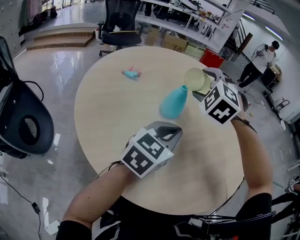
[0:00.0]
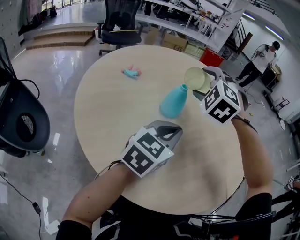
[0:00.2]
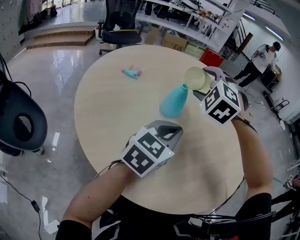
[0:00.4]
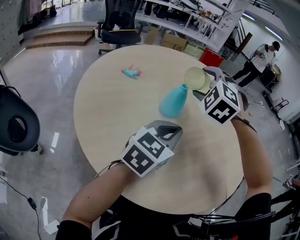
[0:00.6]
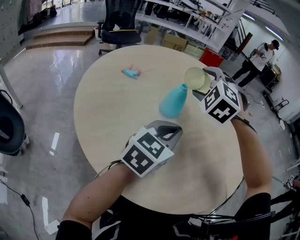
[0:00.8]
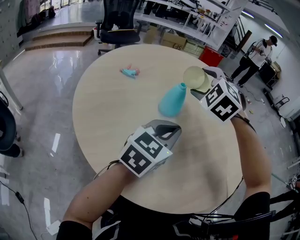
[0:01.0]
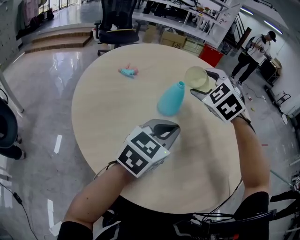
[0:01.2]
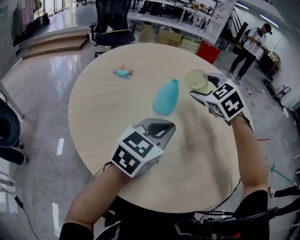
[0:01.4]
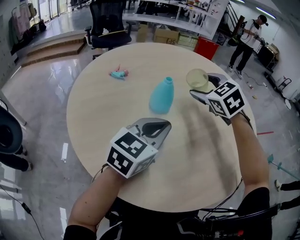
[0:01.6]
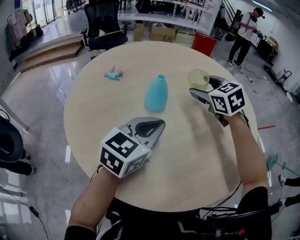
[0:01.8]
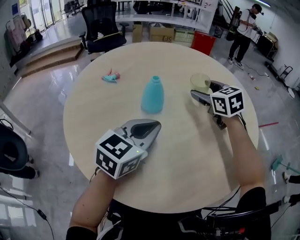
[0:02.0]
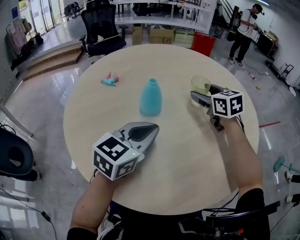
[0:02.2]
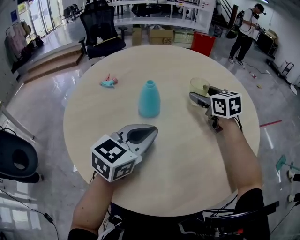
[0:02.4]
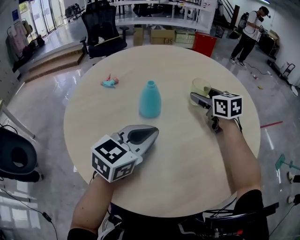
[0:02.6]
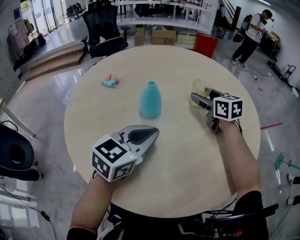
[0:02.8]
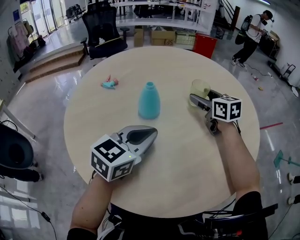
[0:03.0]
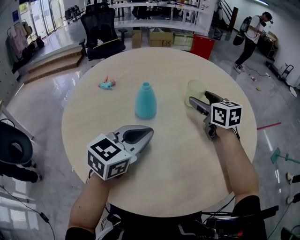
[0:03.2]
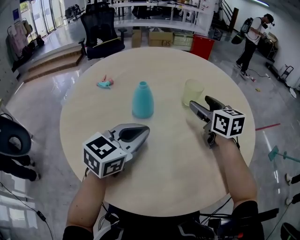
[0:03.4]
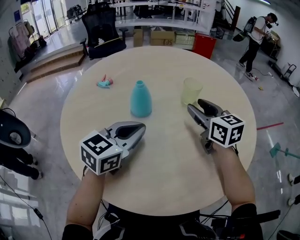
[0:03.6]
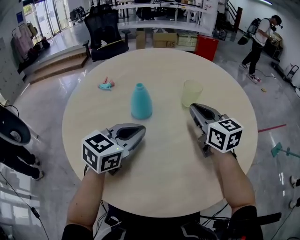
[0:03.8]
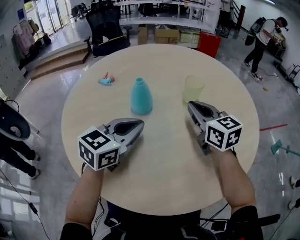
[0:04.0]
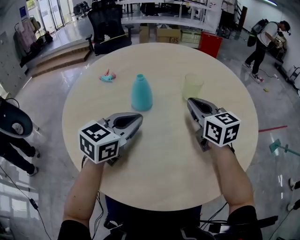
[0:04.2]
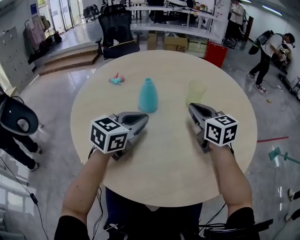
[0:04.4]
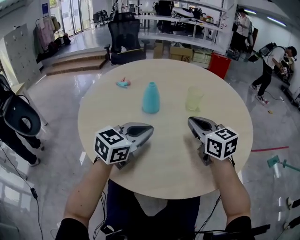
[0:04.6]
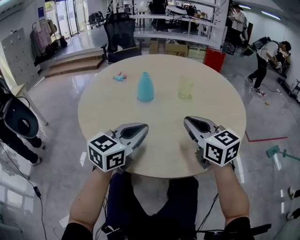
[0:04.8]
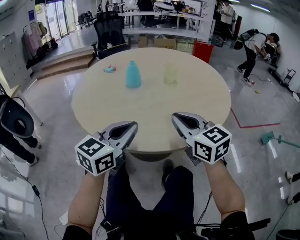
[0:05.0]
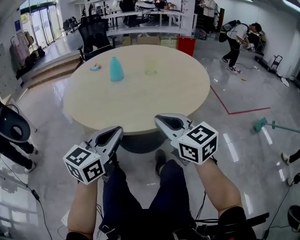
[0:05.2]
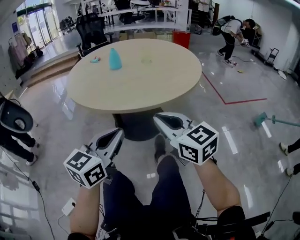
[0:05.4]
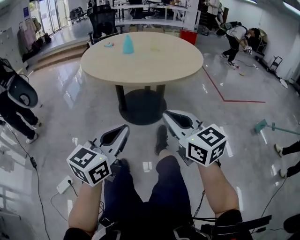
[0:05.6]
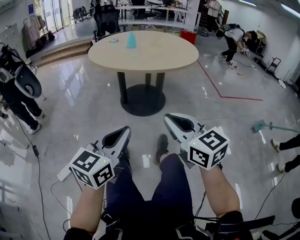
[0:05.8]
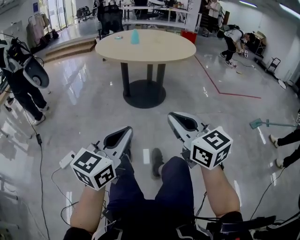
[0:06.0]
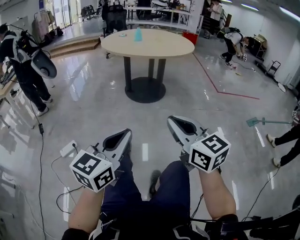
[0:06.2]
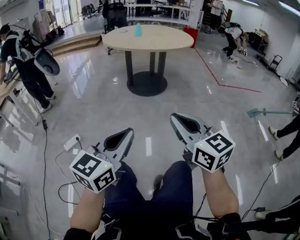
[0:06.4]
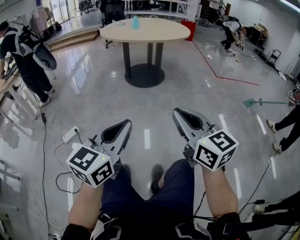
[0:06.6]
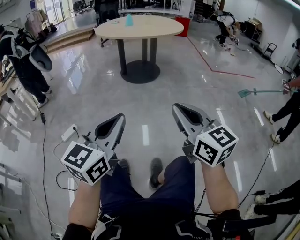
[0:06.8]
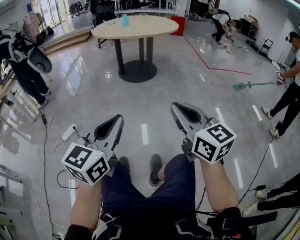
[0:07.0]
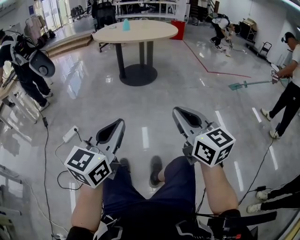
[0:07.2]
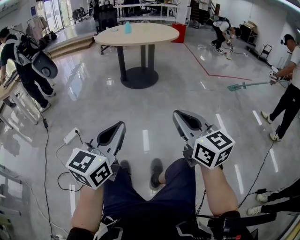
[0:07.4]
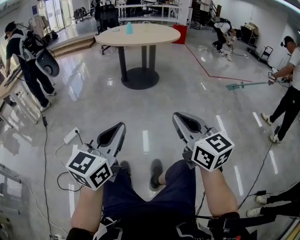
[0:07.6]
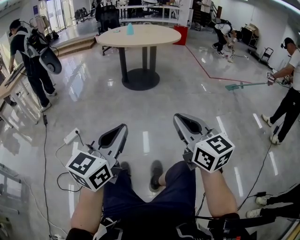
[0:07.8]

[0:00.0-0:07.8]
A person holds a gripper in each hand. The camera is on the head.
0:00.0 to 0:01.6: The right gripper goes some 5 cm to the right, and turns by some 40 degrees.
0:01.6 to 0:03.2: The right gripper heads to the right, covering approximately 10 cm, and rotates around the line of its fingers by roughly 40 degrees, clockwise from behind.
0:03.2 to 0:04.6: The right gripper shifts about 15 cm backward, and closes up.
0:04.6 to 0:06.2: The pair of grippers is taken backward, about 80 cm.
0:06.2 to 0:07.8: Both grippers travel together backward, some 20 cm.

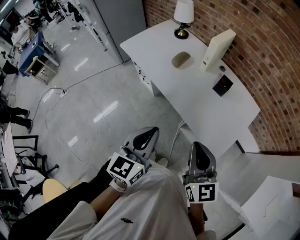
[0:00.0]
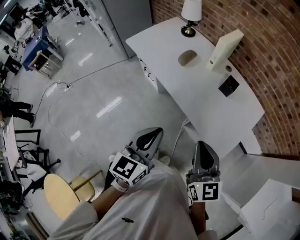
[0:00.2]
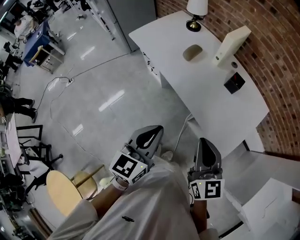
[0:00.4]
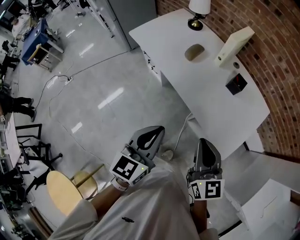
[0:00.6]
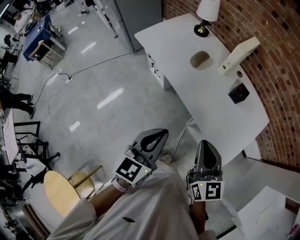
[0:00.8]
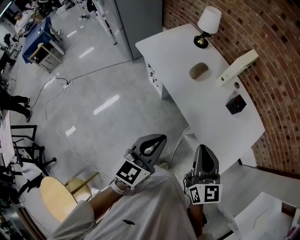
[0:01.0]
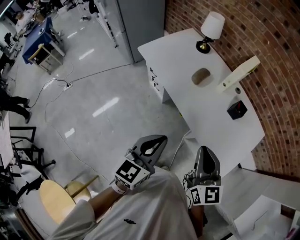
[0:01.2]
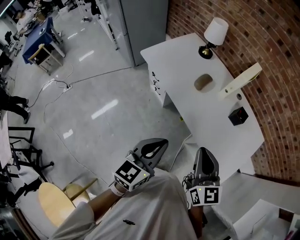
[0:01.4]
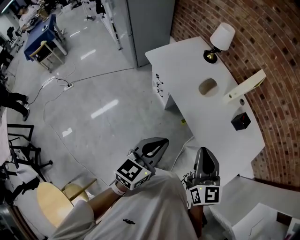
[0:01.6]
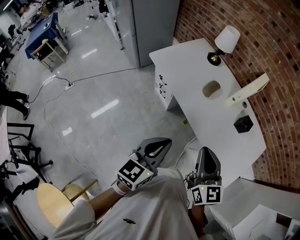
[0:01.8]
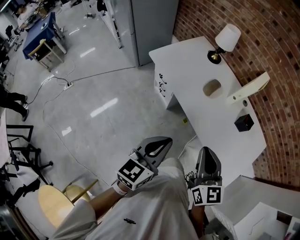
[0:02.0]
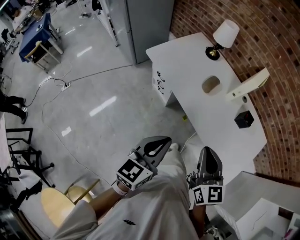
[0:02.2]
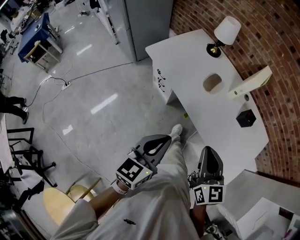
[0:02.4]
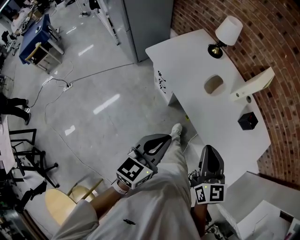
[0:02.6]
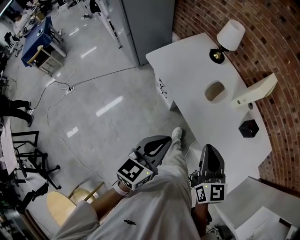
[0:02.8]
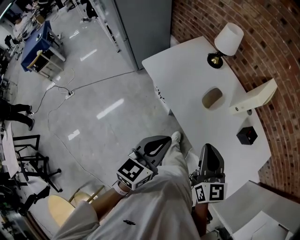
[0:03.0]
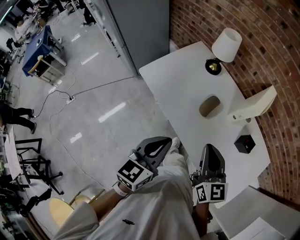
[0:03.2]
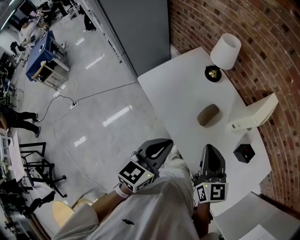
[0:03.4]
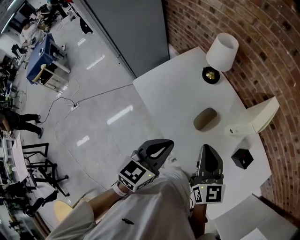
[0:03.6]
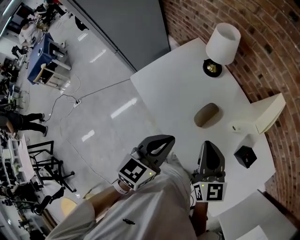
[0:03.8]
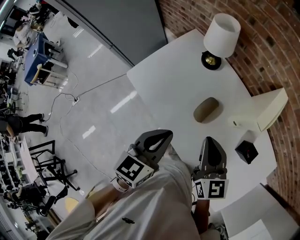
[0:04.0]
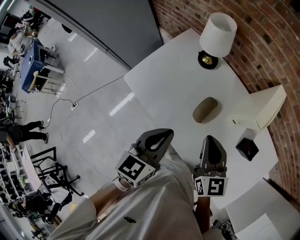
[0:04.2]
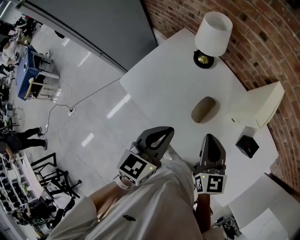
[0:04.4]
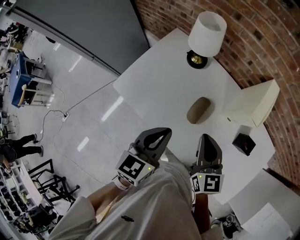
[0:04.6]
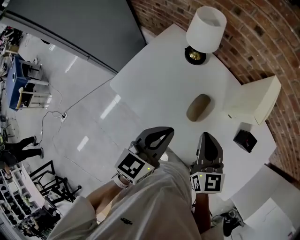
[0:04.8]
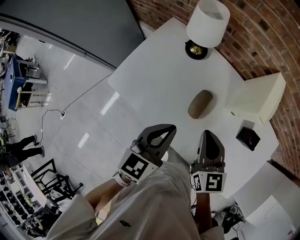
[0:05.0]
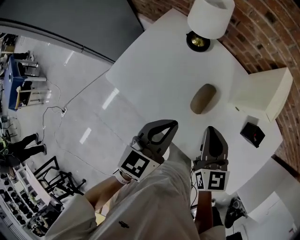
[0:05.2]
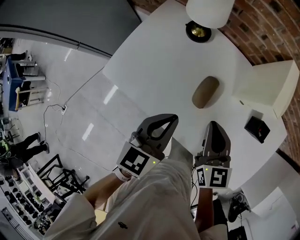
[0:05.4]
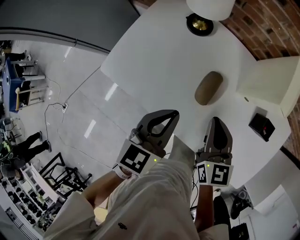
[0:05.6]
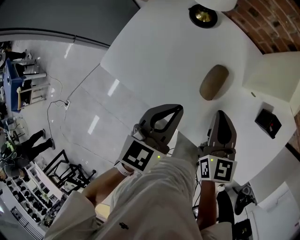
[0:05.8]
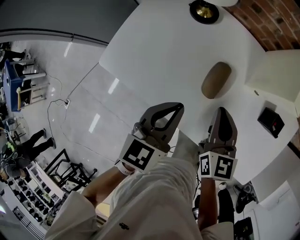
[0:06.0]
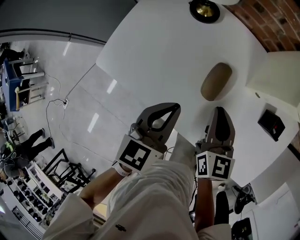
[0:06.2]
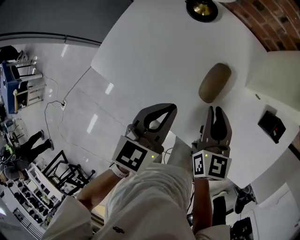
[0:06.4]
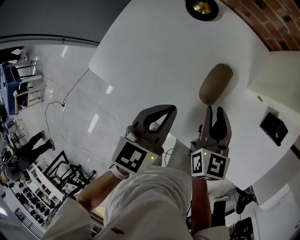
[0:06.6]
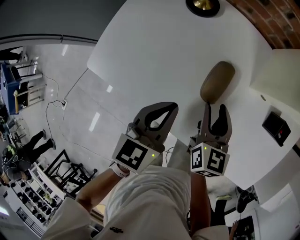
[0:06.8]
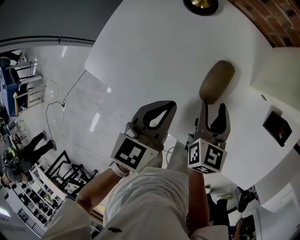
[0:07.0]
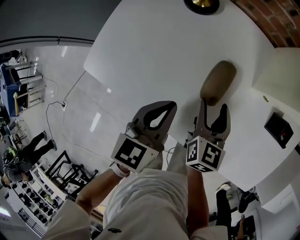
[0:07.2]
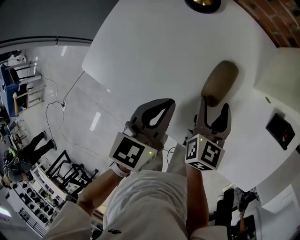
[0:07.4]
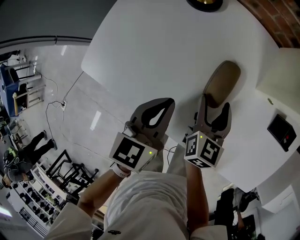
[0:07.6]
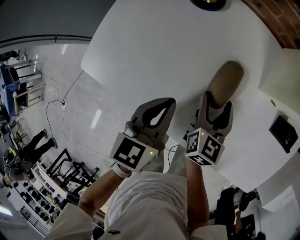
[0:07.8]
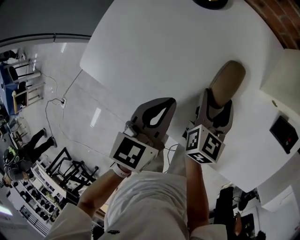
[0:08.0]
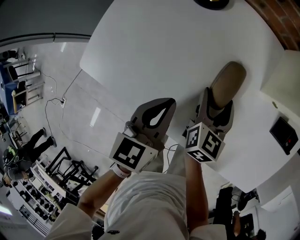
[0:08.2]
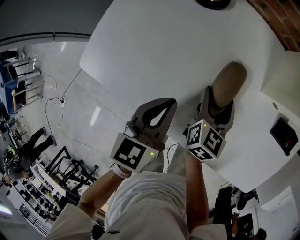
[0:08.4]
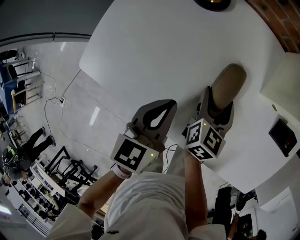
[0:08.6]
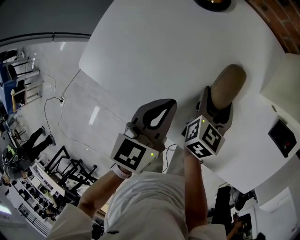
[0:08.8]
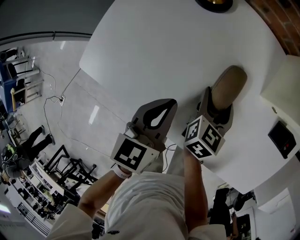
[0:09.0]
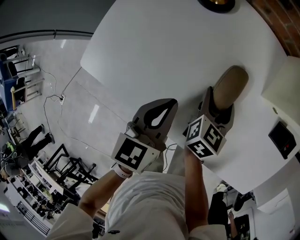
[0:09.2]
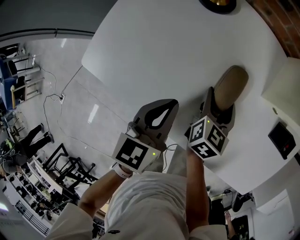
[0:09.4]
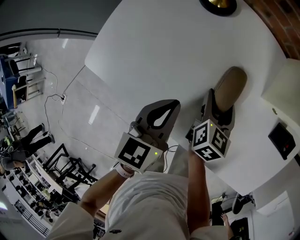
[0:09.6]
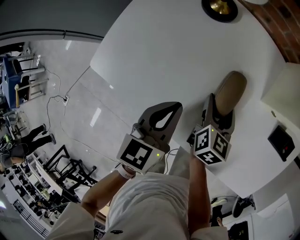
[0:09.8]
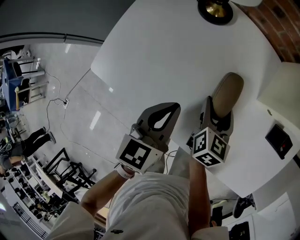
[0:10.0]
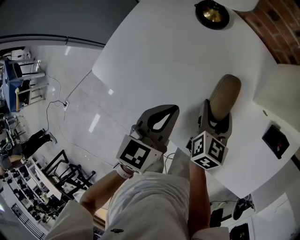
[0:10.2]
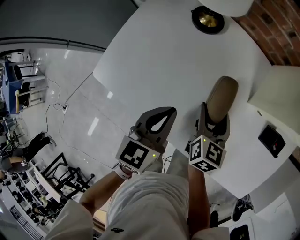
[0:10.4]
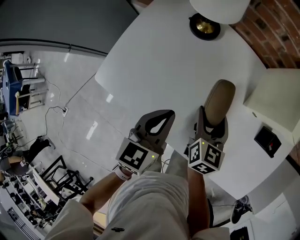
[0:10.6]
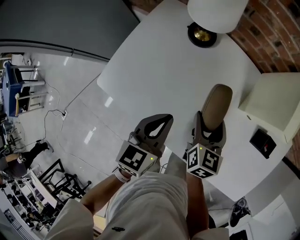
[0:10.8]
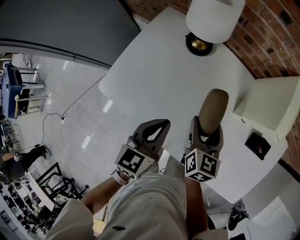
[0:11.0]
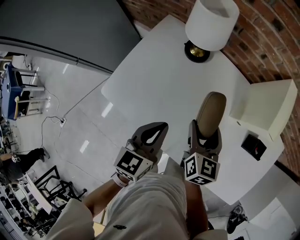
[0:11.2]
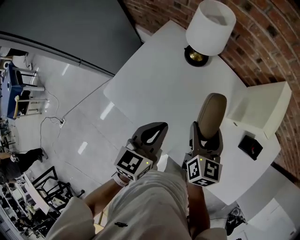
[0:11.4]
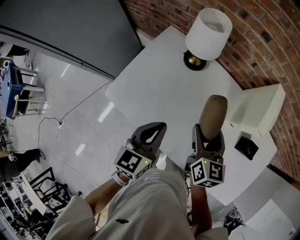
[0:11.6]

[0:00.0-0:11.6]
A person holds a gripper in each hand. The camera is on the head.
0:00.0 to 0:01.4: Both grippers travel together to the left and forward, some 15 cm.
0:01.4 to 0:02.8: The grippers both shift forward and to the left by roughly 15 cm.
0:02.8 to 0:04.4: Both grippers move forward, about 30 cm.
0:04.4 to 0:05.8: Both grippers move downward, some 10 cm.
0:05.8 to 0:07.2: Both grippers move downward, some 10 cm. The right gripper opens its fingers.
0:07.2 to 0:08.8: The right gripper heads downward, covering approximately 5 cm.
0:08.8 to 0:10.2: The right gripper moves upward, approximately 5 cm.
0:10.2 to 0:11.6: The grippers both shift upward by about 15 cm.

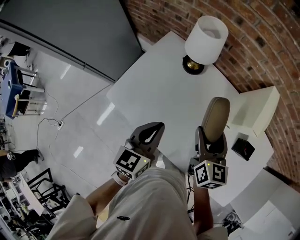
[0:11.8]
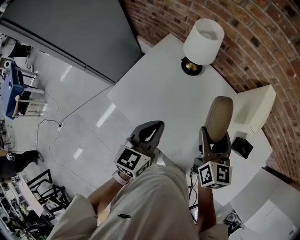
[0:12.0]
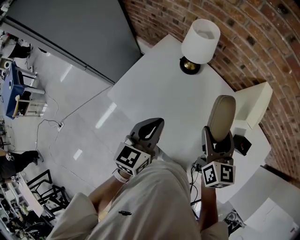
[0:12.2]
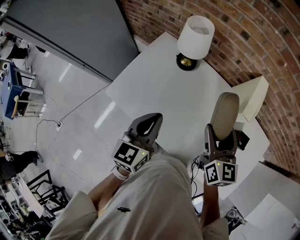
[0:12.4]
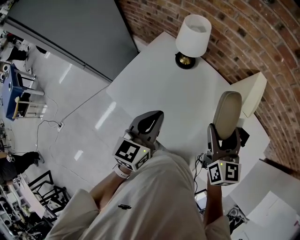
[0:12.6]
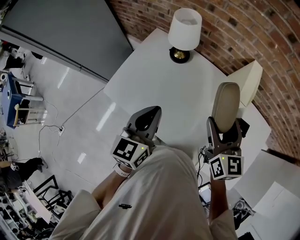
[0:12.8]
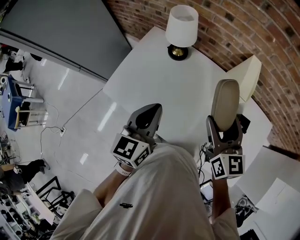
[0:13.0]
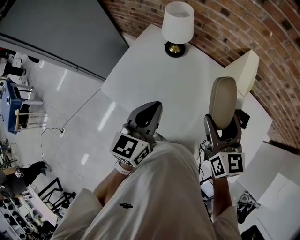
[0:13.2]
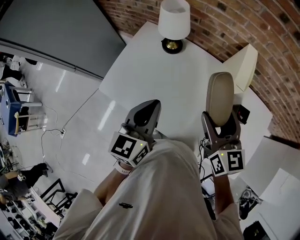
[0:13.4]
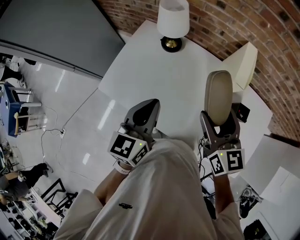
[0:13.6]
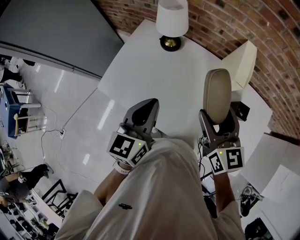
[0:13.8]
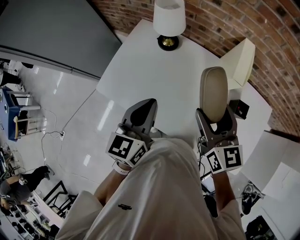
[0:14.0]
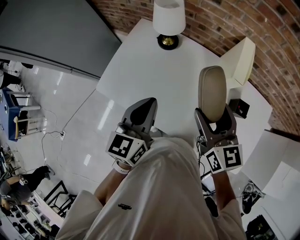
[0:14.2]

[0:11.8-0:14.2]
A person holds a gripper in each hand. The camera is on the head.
0:11.8 to 0:13.0: The right gripper heads upward, to the right and backward, covering approximately 15 cm, while the left gripper moves upward, approximately 10 cm.
0:13.0 to 0:14.2: The grippers stay close to where they were, moving slightly.

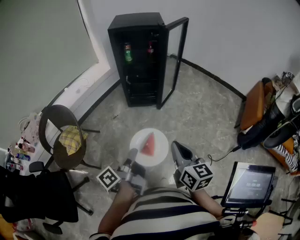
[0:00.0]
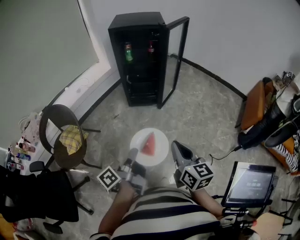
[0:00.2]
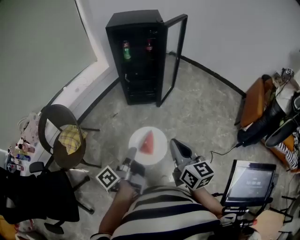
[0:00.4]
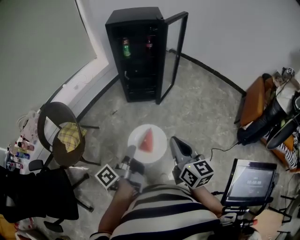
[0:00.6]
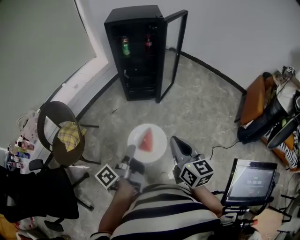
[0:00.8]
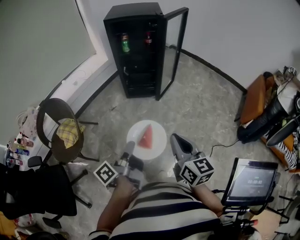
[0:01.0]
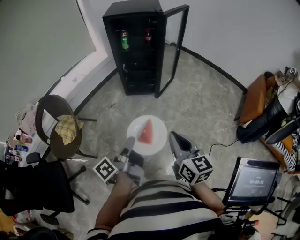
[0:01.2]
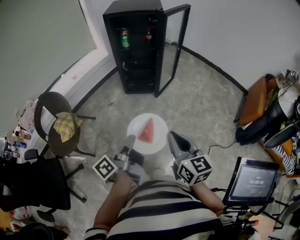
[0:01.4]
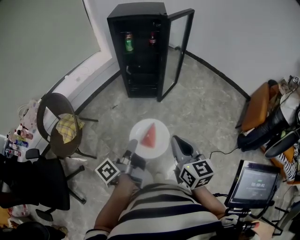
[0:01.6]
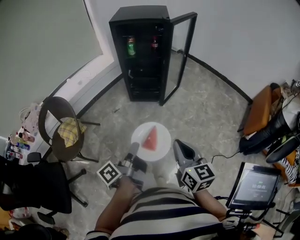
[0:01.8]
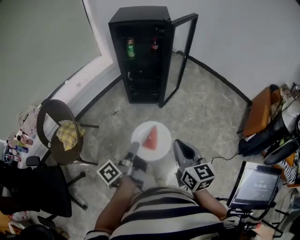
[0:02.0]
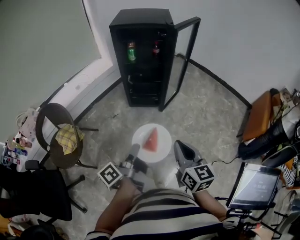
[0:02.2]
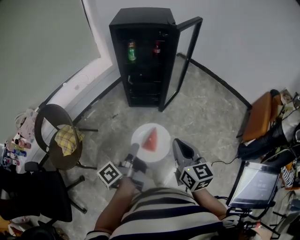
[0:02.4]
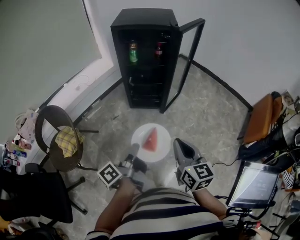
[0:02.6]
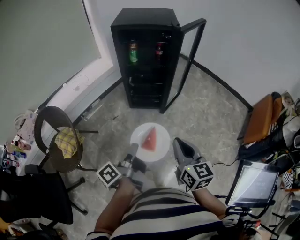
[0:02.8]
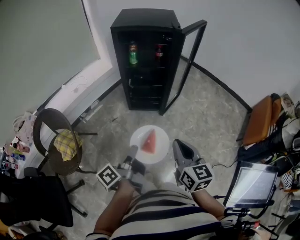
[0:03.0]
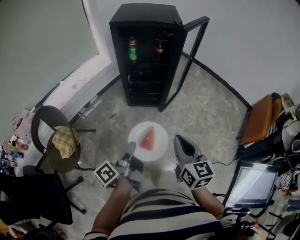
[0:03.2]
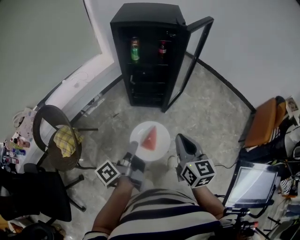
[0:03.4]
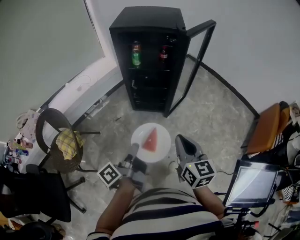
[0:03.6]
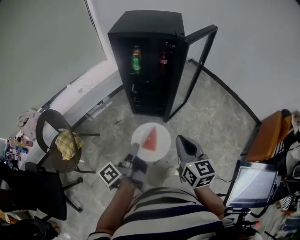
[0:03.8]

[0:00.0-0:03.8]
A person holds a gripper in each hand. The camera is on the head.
0:00.0 to 0:01.2: There are only small adjustments of the grippers.
0:01.2 to 0:02.6: Both grippers travel together forward, approximately 10 cm.
0:02.6 to 0:03.8: The grippers both shift forward by approximately 10 cm.
